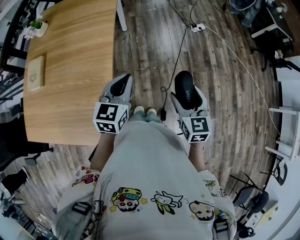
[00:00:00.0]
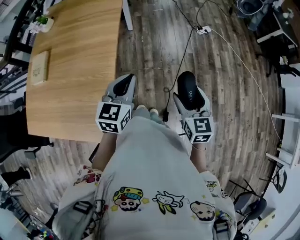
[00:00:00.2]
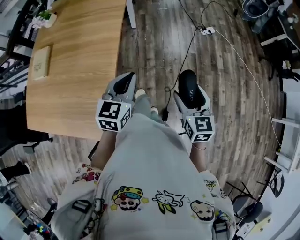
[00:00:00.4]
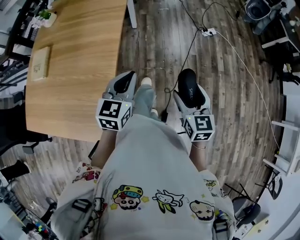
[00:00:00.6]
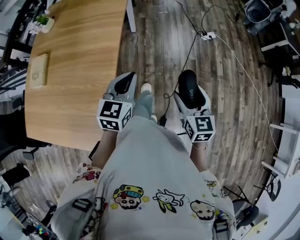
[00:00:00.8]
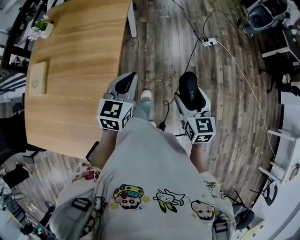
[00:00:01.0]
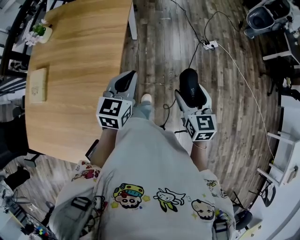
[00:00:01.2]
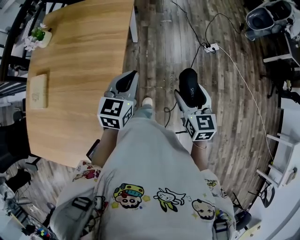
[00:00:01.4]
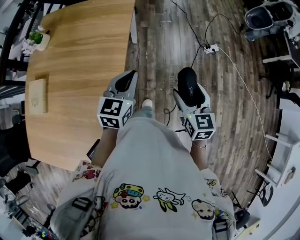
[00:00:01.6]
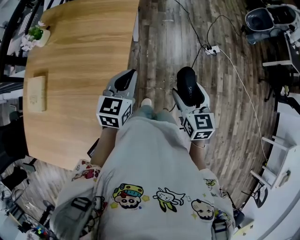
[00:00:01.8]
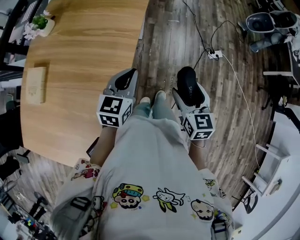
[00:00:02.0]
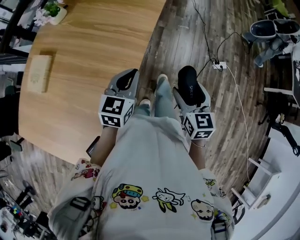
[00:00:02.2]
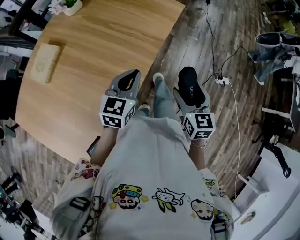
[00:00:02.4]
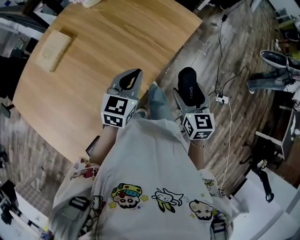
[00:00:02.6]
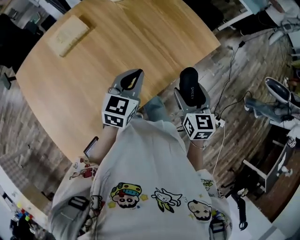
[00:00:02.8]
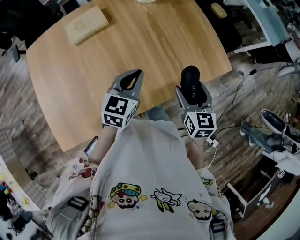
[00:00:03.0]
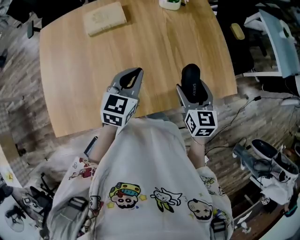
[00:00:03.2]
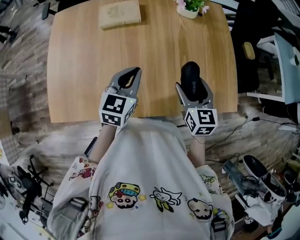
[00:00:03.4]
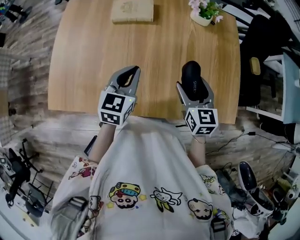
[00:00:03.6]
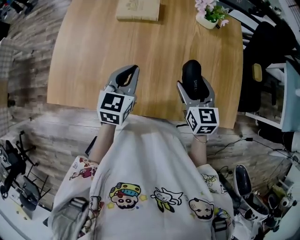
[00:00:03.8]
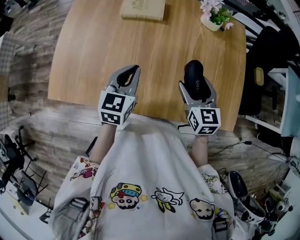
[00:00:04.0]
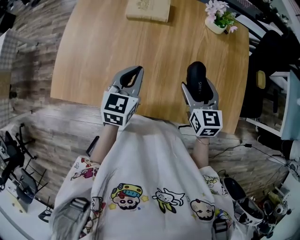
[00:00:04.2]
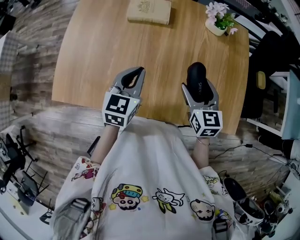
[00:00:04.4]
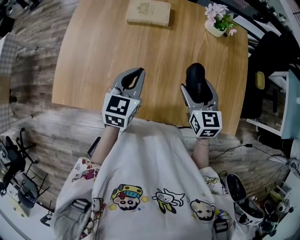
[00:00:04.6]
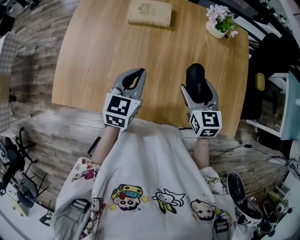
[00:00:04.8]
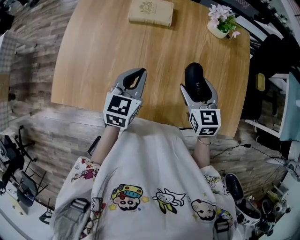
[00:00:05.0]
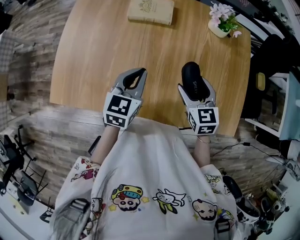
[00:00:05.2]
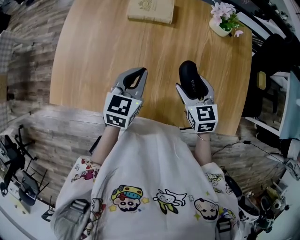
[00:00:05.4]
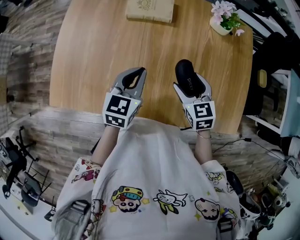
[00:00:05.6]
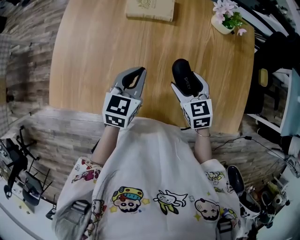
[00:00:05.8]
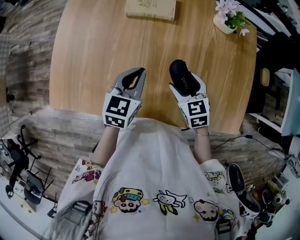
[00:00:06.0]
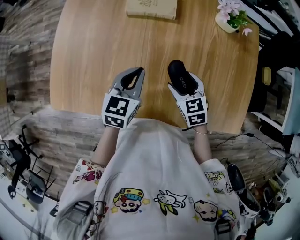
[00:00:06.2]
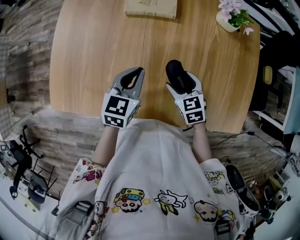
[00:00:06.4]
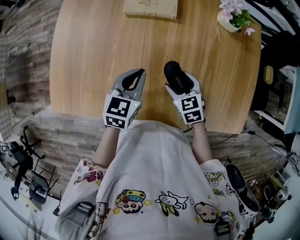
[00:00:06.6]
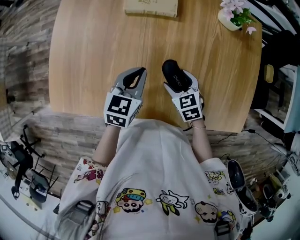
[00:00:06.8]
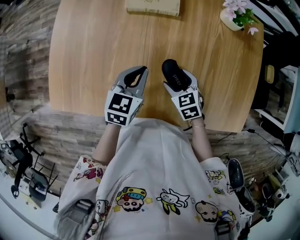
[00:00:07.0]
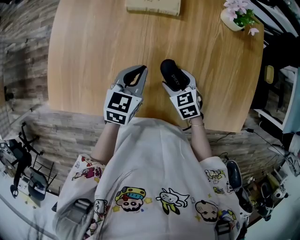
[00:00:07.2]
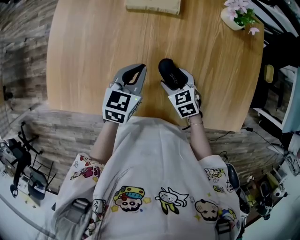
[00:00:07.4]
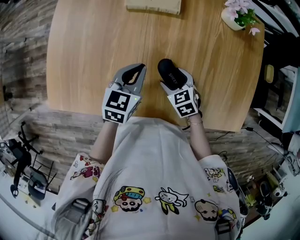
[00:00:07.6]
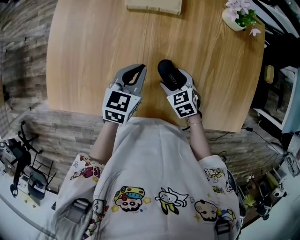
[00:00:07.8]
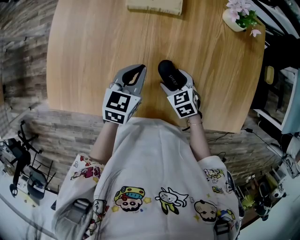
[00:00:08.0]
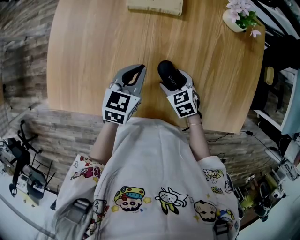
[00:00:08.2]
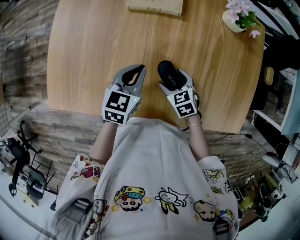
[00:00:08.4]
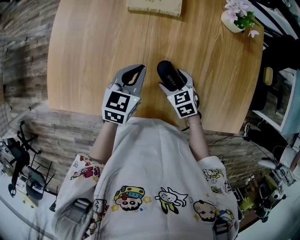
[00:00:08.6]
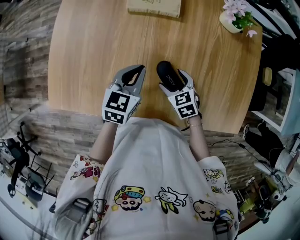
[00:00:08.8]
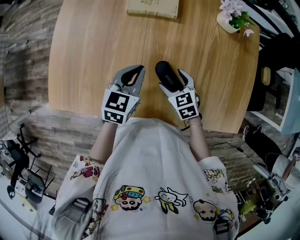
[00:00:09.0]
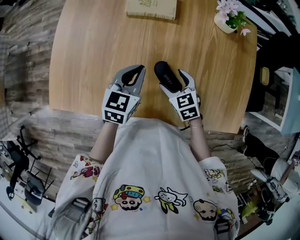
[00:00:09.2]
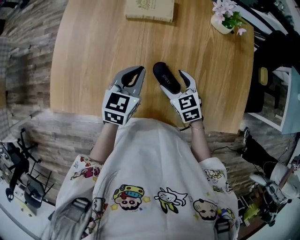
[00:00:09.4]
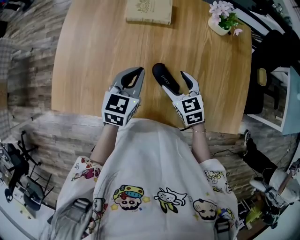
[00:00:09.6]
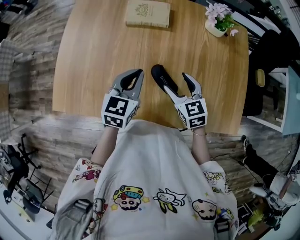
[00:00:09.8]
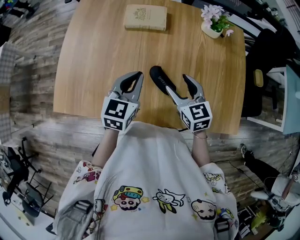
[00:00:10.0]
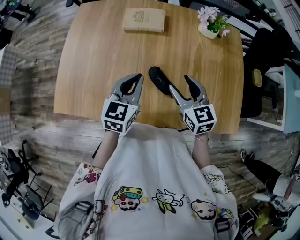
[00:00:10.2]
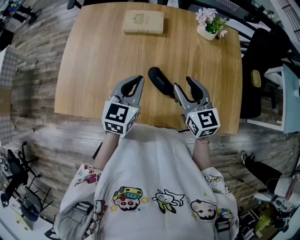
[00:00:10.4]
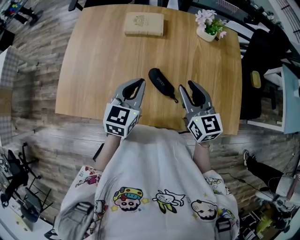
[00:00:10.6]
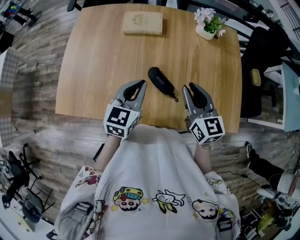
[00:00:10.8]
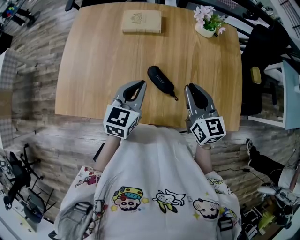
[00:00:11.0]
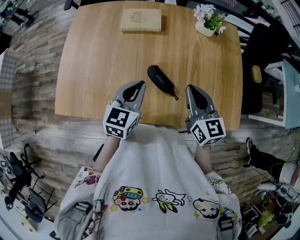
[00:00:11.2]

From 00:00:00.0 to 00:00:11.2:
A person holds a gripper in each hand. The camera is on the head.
From 00:00:00.0 to 00:00:01.6: Both grippers travel together forward, approximately 30 cm.
From 00:00:01.6 to 00:00:03.2: The right gripper shifts by approximately 50 cm, and swivels approximately 70 degrees. The left gripper shifts by approximately 30 cm, and swivels approximately 70 degrees.
From 00:00:03.2 to 00:00:04.8: The right gripper ends up some 10 cm from where it was, and turns by approximately 30 degrees, while the left gripper ends up approximately 10 cm from where it was, and turns by approximately 20 degrees.
From 00:00:04.8 to 00:00:06.4: The right gripper is displaced downward and to the left by some 15 cm, and swivels about 20 degrees, while the left gripper goes approximately 5 cm downward.
From 00:00:06.4 to 00:00:08.0: The right gripper moves downward, about 5 cm.
From 00:00:08.0 to 00:00:09.6: The left gripper goes some 5 cm upward. Meanwhile the right gripper moves upward, about 10 cm.
From 00:00:09.6 to 00:00:11.2: The left gripper shifts some 5 cm backward; the right gripper heads upward and to the right, covering about 15 cm, turns by roughly 30 degrees, and closes its fingers.

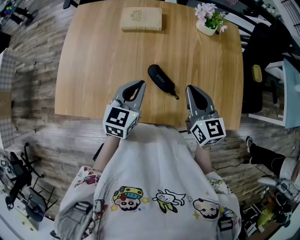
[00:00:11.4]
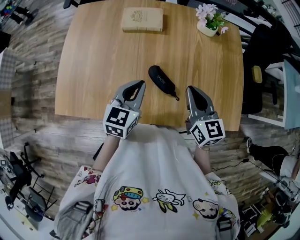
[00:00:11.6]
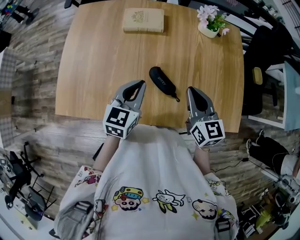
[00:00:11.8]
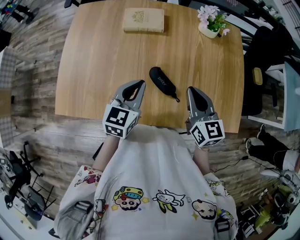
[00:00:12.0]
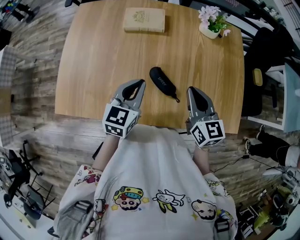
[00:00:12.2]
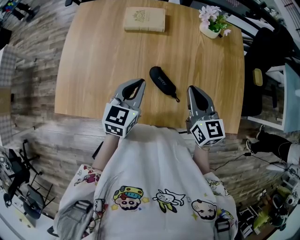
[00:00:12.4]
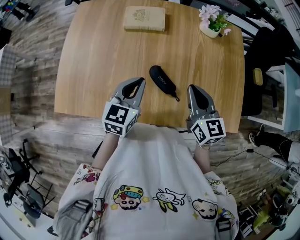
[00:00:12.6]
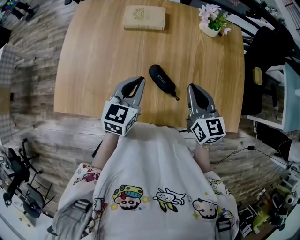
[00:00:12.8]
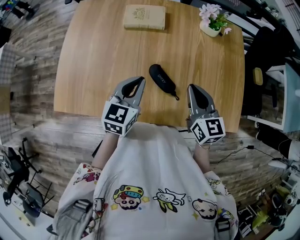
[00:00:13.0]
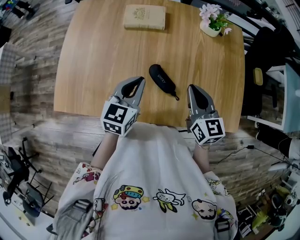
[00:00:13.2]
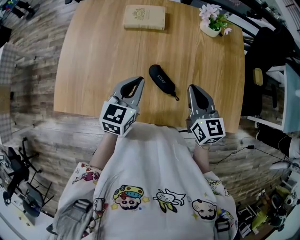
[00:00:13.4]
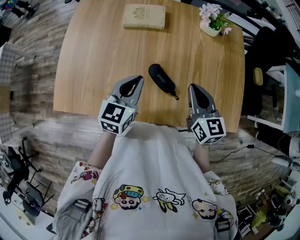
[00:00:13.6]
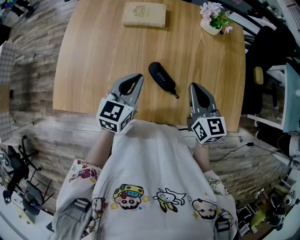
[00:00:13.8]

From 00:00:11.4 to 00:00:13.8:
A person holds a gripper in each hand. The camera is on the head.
From 00:00:11.4 to 00:00:12.6: There are only small adjustments of the grippers.
From 00:00:12.6 to 00:00:13.8: Both grippers stay put.

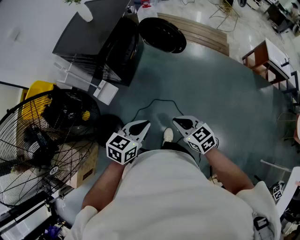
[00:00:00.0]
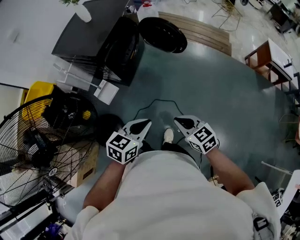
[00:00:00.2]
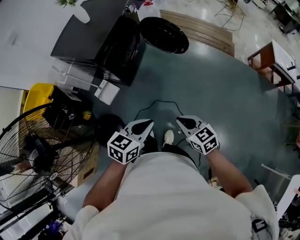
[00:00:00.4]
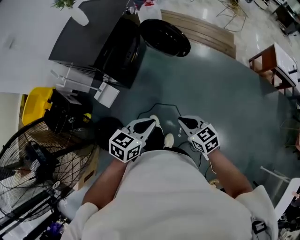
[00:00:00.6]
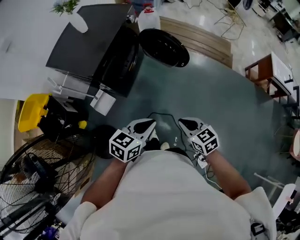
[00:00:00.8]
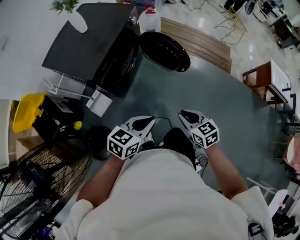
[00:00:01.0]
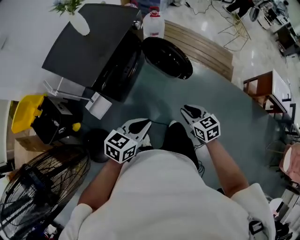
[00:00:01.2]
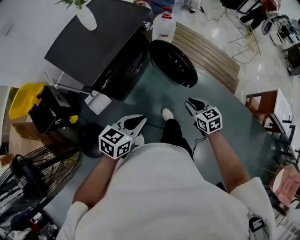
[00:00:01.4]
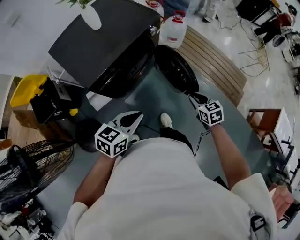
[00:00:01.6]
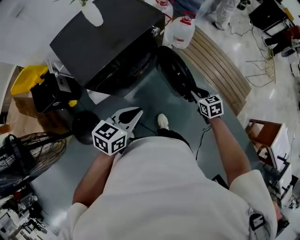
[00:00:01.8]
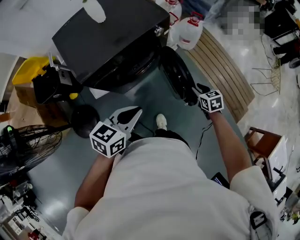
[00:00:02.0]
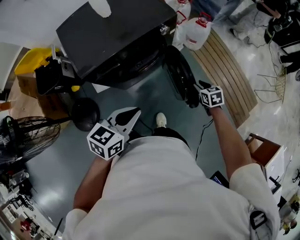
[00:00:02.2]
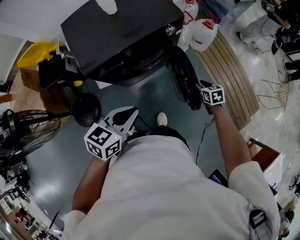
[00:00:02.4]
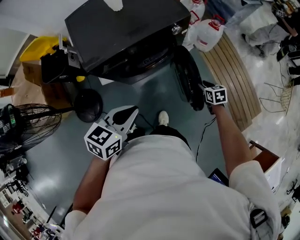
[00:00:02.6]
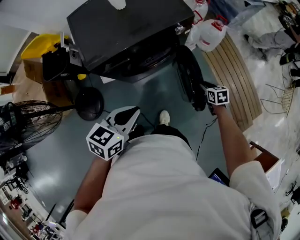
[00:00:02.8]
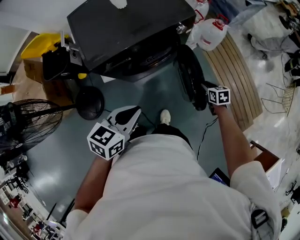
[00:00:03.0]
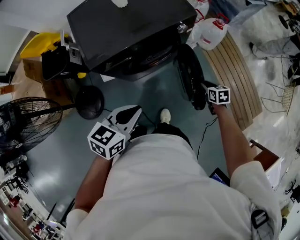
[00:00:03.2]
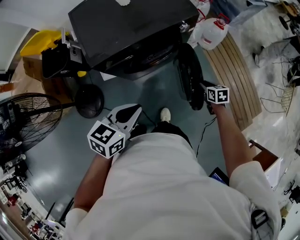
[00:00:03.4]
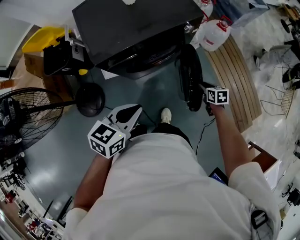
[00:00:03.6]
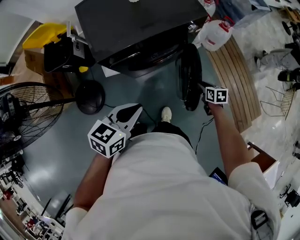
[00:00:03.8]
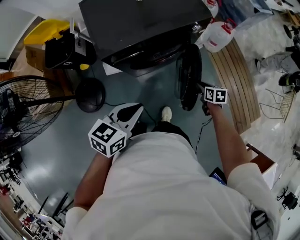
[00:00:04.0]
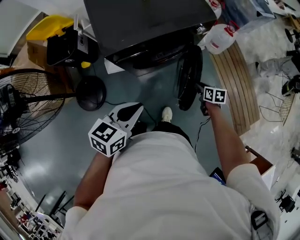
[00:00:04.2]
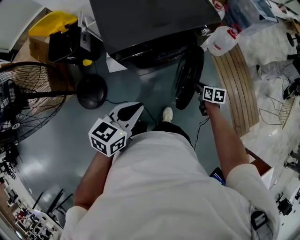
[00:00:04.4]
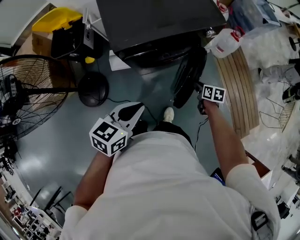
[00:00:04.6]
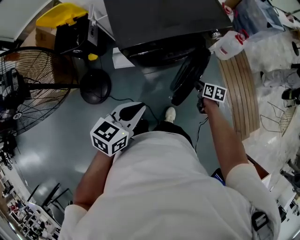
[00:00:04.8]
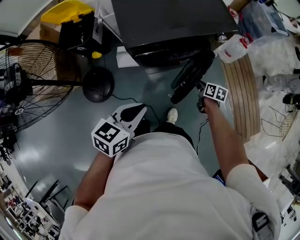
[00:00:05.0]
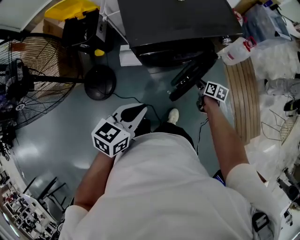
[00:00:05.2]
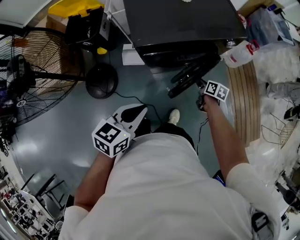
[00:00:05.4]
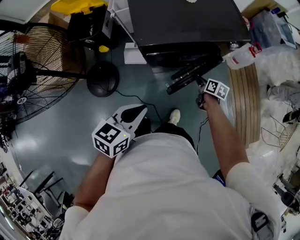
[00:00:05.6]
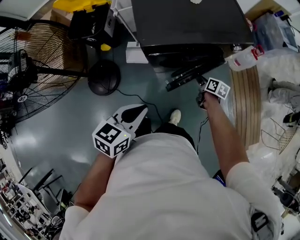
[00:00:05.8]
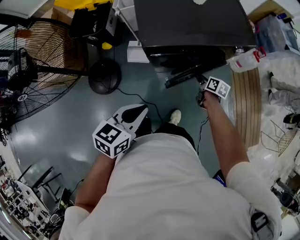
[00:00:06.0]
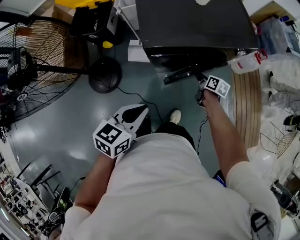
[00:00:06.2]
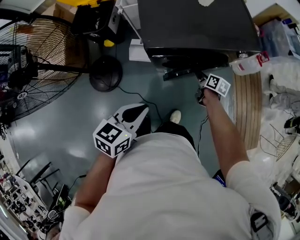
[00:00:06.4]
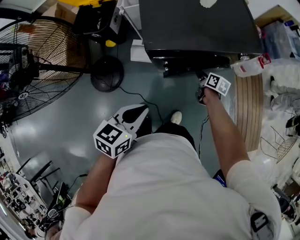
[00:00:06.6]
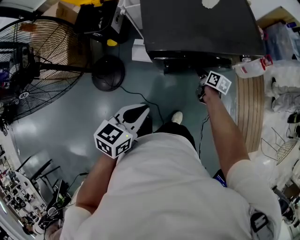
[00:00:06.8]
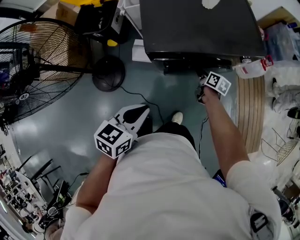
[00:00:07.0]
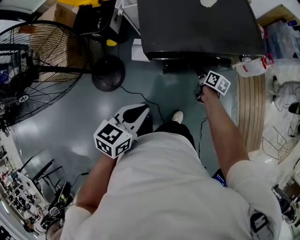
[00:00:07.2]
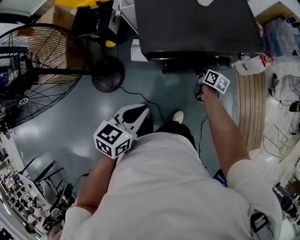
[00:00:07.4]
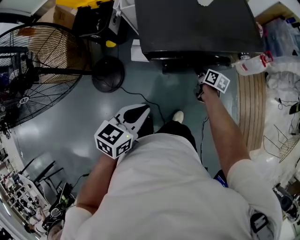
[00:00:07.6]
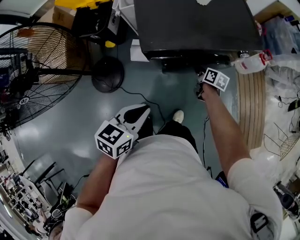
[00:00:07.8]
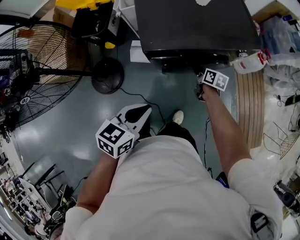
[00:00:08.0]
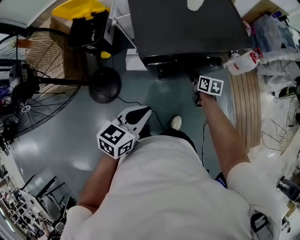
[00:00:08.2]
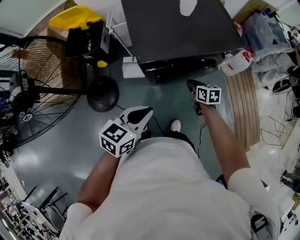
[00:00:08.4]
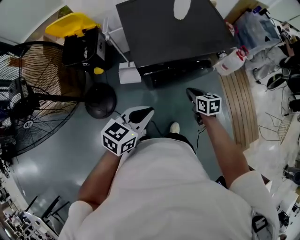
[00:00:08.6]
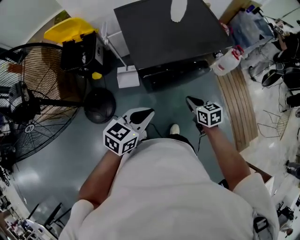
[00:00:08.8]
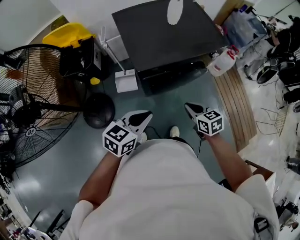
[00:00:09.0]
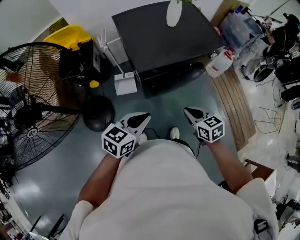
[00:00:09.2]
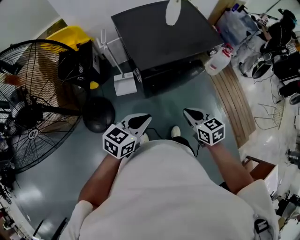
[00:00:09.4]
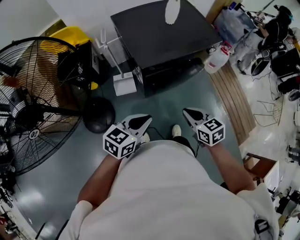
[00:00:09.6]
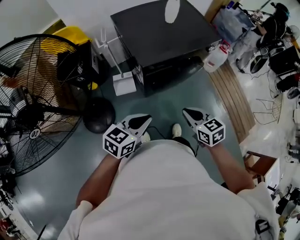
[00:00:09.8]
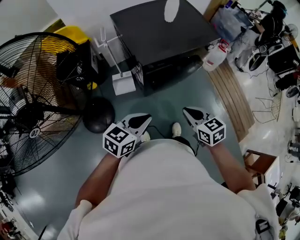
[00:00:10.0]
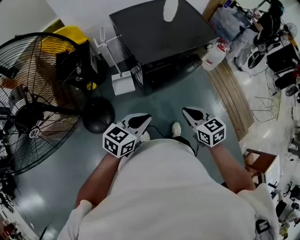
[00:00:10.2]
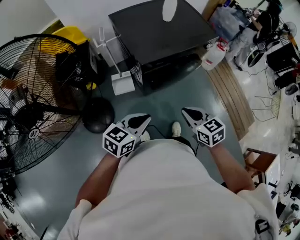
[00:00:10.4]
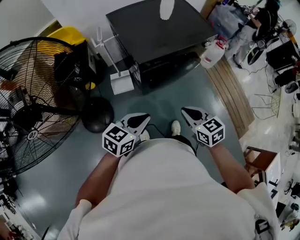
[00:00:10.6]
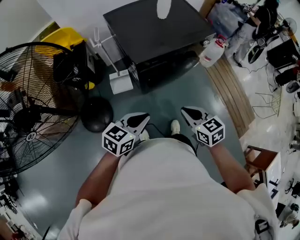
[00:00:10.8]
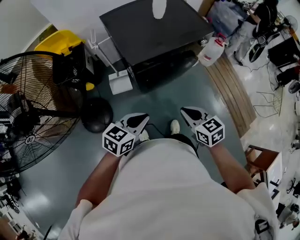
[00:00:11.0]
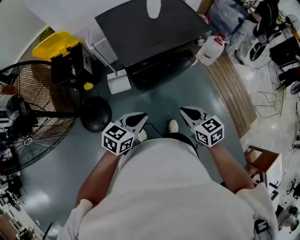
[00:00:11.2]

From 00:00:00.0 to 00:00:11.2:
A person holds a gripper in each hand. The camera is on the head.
From 00:00:00.0 to 00:00:01.6: Both grippers travel together forward, approximately 50 cm. The left gripper swivels about 20 degrees, while the right gripper opens its fingers.
From 00:00:01.6 to 00:00:03.2: The left gripper shifts roughly 5 cm forward, and turns by about 20 degrees. The right gripper goes roughly 25 cm forward and downward.
From 00:00:03.2 to 00:00:04.8: The left gripper is displaced to the left by some 10 cm, while the right gripper moves to the left, some 15 cm.
From 00:00:04.8 to 00:00:06.4: The right gripper goes some 15 cm to the left and forward, while the left gripper goes roughly 5 cm to the left.
From 00:00:06.4 to 00:00:08.0: There are only small adjustments of the grippers.
From 00:00:08.0 to 00:00:09.6: The right gripper moves backward and upward, roughly 35 cm, and swivels approximately 30 degrees. Meanwhile the left gripper moves to the left and backward, approximately 10 cm, and rotates about 20 degrees.
From 00:00:09.6 to 00:00:11.2: Both grippers travel together to the right, about 5 cm.
